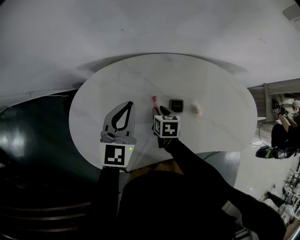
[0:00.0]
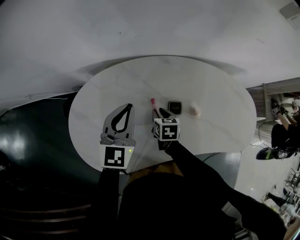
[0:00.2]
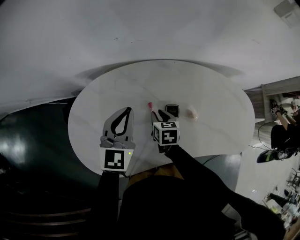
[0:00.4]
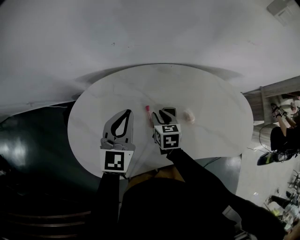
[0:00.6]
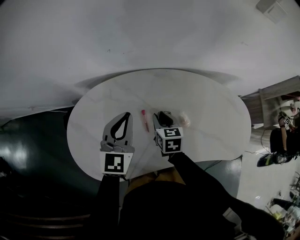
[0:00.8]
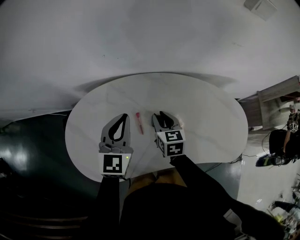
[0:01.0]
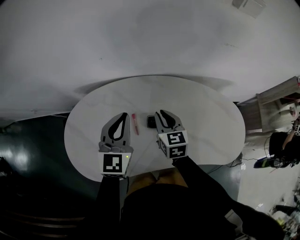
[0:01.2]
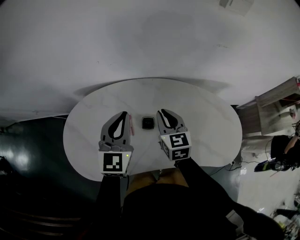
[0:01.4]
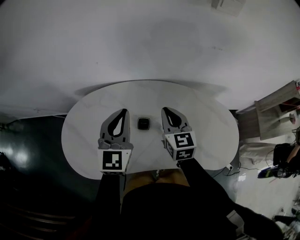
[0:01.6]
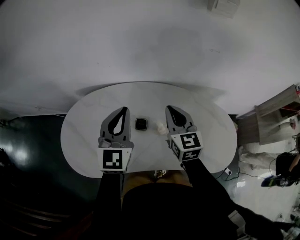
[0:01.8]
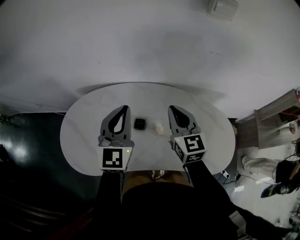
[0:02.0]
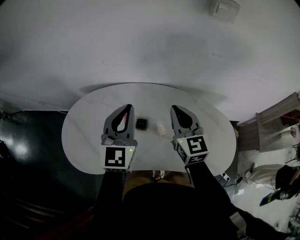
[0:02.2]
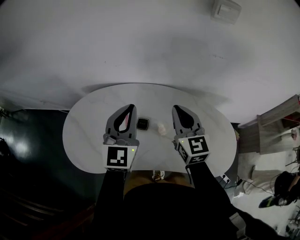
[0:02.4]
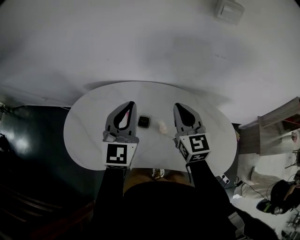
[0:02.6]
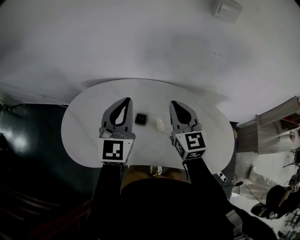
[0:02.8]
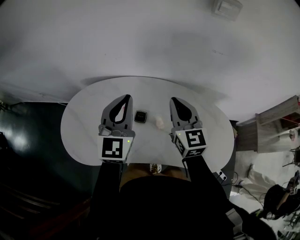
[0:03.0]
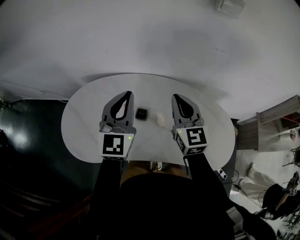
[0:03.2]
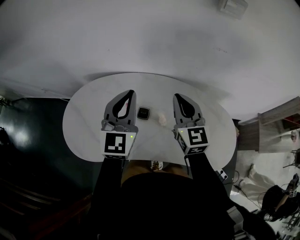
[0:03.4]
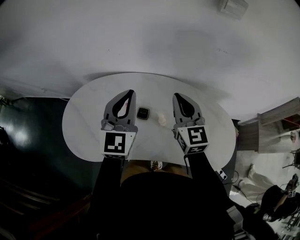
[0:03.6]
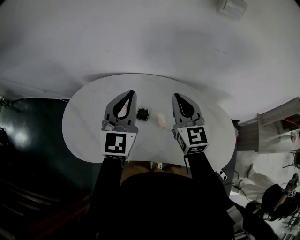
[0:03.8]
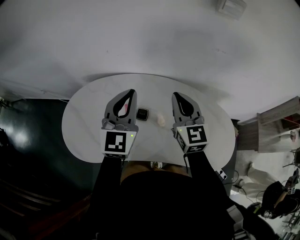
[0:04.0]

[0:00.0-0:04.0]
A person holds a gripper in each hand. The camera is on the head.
0:00.0 to 0:01.4: The left gripper moves to the right and upward, some 15 cm. The right gripper is displaced upward and to the right by roughly 25 cm, and tips its fingers upward by approximately 30 degrees.
0:01.4 to 0:02.6: The right gripper is displaced upward and to the right by roughly 15 cm, while the left gripper travels upward and to the right by approximately 10 cm.
0:02.6 to 0:04.0: The two grippers keep their place.

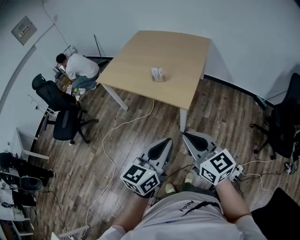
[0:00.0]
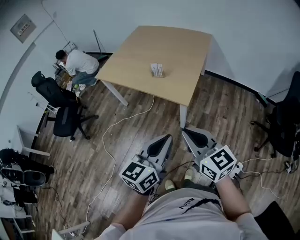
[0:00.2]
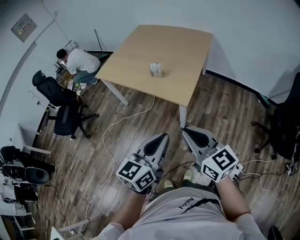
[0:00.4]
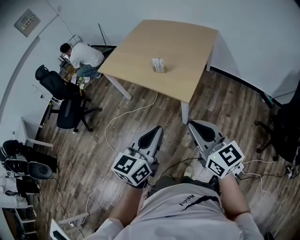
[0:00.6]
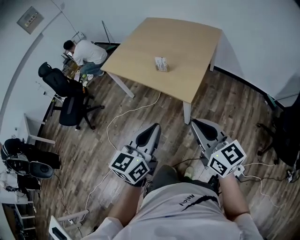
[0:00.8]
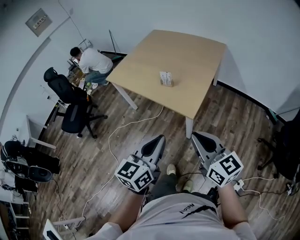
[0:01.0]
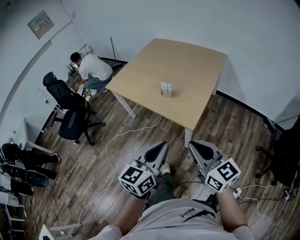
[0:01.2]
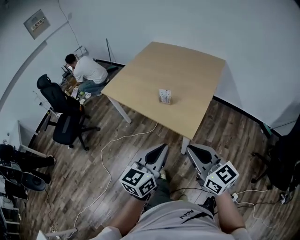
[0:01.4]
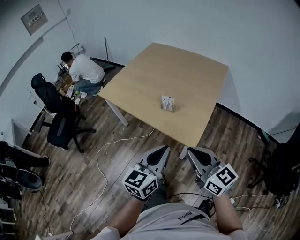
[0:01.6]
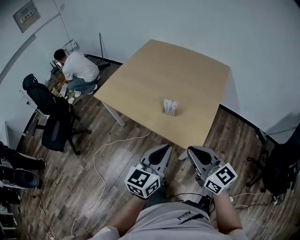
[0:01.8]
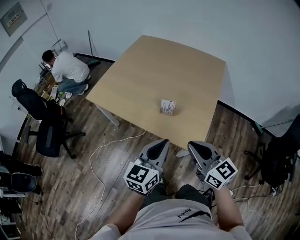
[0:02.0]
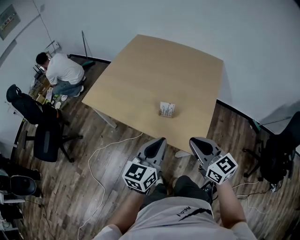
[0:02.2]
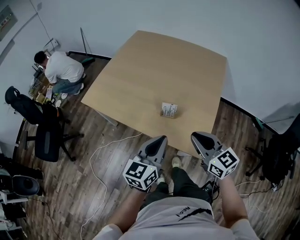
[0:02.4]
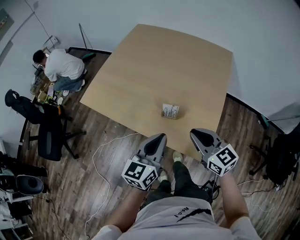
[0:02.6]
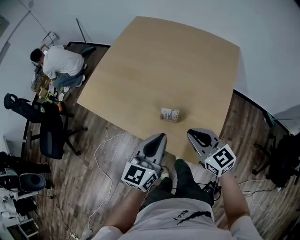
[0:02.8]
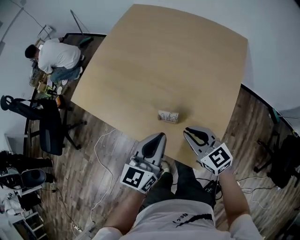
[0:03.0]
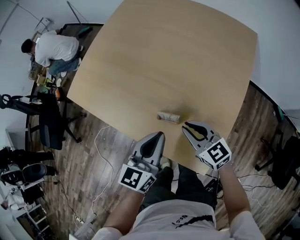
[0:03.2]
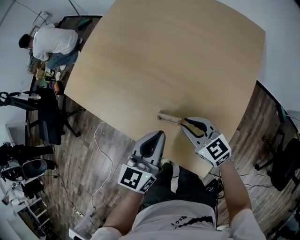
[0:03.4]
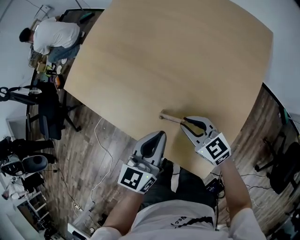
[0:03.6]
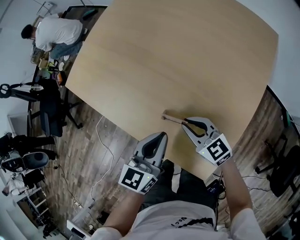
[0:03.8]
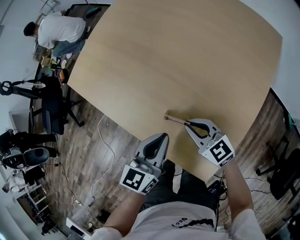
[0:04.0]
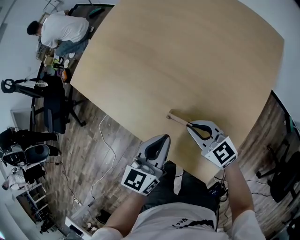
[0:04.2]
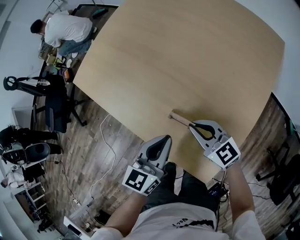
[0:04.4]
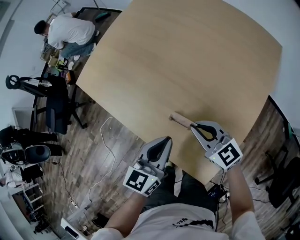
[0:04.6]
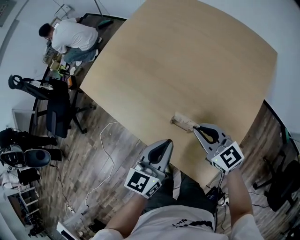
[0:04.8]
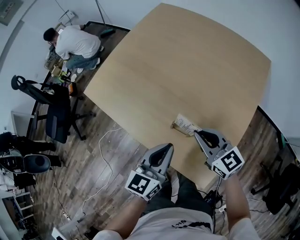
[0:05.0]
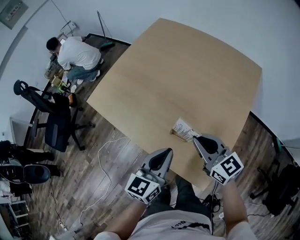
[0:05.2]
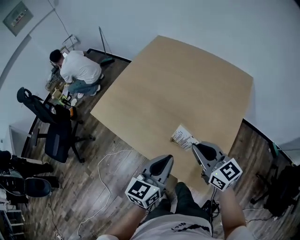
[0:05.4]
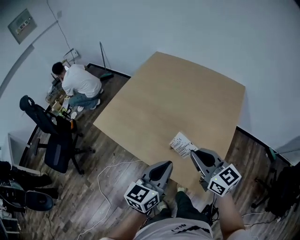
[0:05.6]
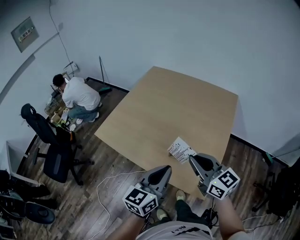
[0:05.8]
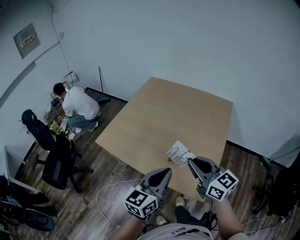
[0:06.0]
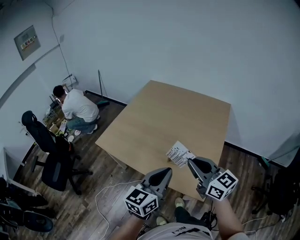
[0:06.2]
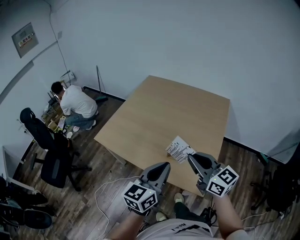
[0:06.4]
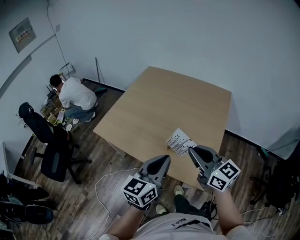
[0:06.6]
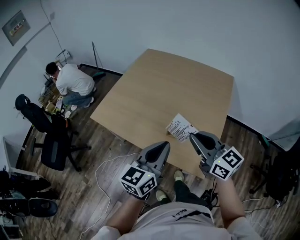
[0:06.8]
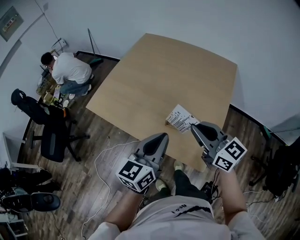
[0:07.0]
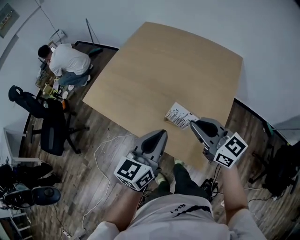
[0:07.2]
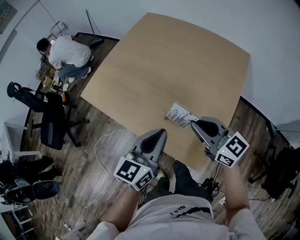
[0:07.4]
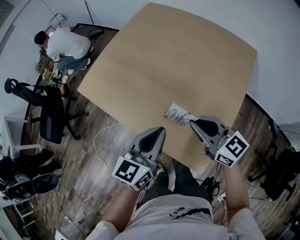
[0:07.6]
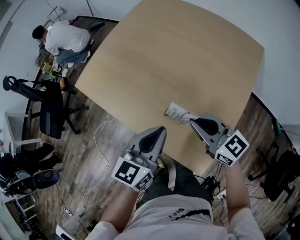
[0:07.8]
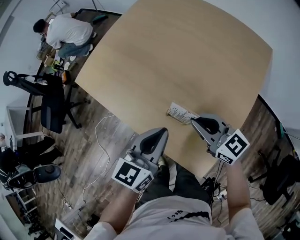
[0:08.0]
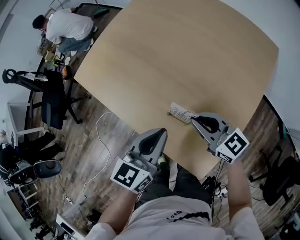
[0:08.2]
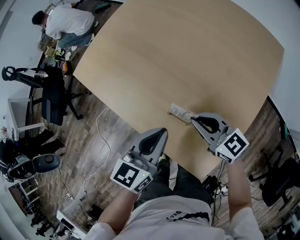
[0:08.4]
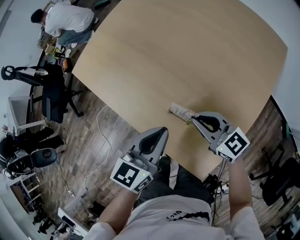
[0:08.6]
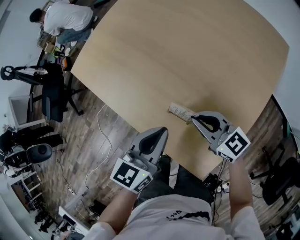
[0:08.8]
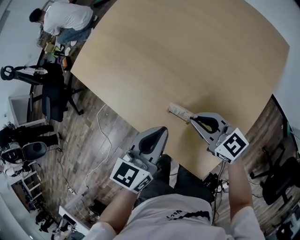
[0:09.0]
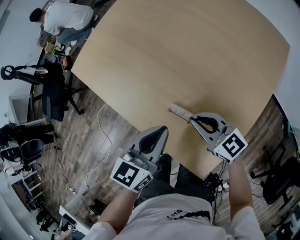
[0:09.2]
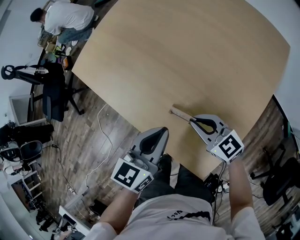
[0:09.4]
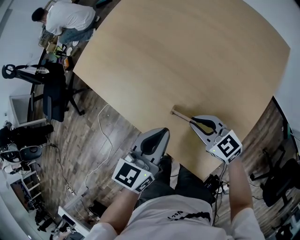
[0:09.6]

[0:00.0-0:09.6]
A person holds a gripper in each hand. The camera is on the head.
0:00.0 to 0:01.6: The two grippers go some 20 cm forward.
0:01.6 to 0:03.2: The grippers both shift forward and downward by approximately 40 cm. The right gripper changes its angle by roughly 20 degrees.
0:03.2 to 0:04.8: The right gripper moves some 5 cm downward and comes back.
0:04.8 to 0:06.4: The two grippers go roughly 25 cm upward and backward. The left gripper changes its angle by roughly 20 degrees. Meanwhile the right gripper swivels roughly 20 degrees.
0:06.4 to 0:08.0: The two grippers go some 25 cm downward and forward. The right gripper turns by about 30 degrees.
0:08.0 to 0:09.6: The right gripper shifts approximately 10 cm downward.

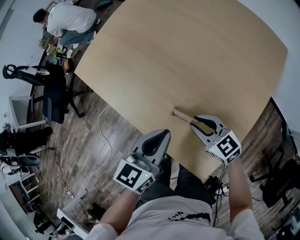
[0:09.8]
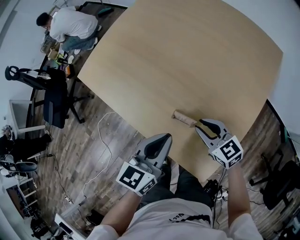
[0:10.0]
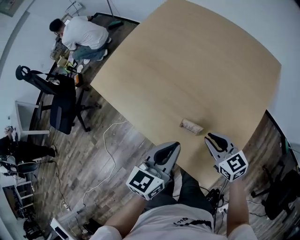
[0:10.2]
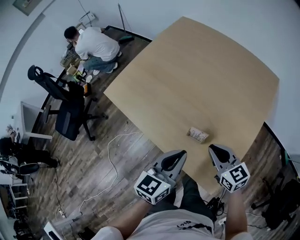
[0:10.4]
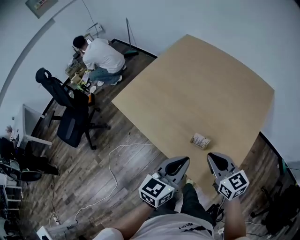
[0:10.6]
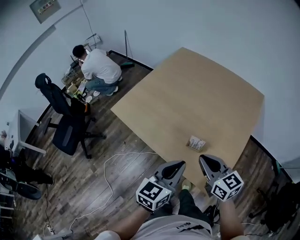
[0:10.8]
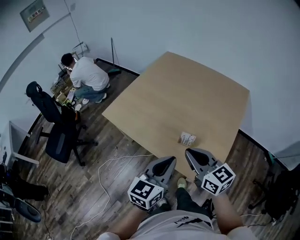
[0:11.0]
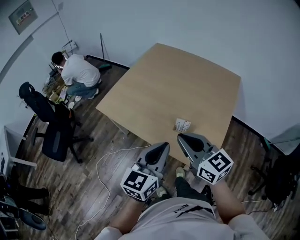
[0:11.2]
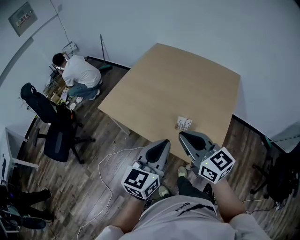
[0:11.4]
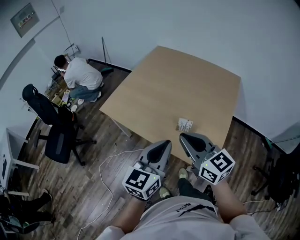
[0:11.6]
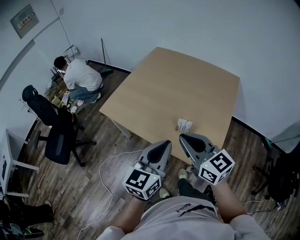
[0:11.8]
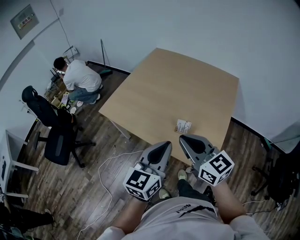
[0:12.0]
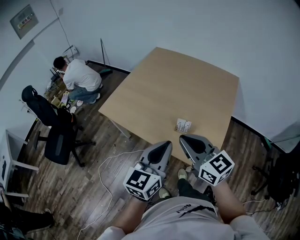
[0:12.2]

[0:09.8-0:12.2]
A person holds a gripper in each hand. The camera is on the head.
0:09.8 to 0:11.0: The right gripper moves upward, about 30 cm, and changes its angle by some 30 degrees. The left gripper goes approximately 25 cm upward, backward and to the left.
0:11.0 to 0:12.2: The two grippers go about 5 cm upward.

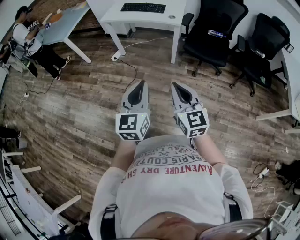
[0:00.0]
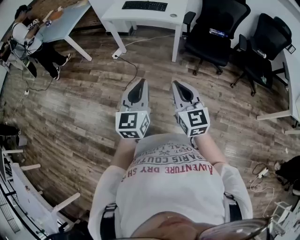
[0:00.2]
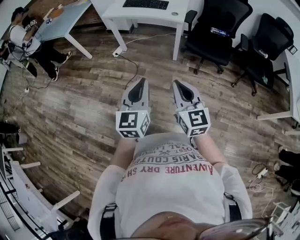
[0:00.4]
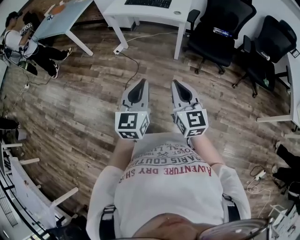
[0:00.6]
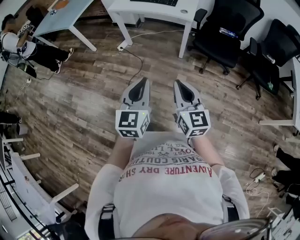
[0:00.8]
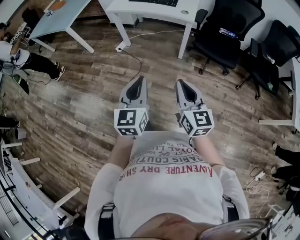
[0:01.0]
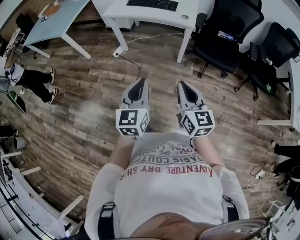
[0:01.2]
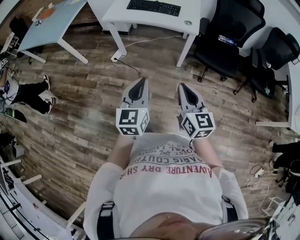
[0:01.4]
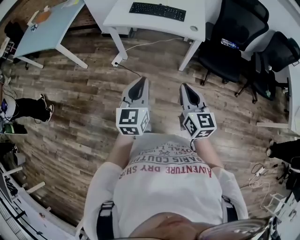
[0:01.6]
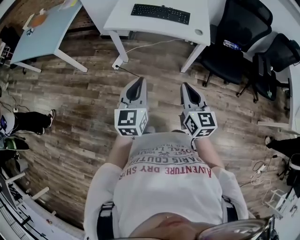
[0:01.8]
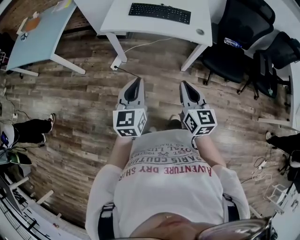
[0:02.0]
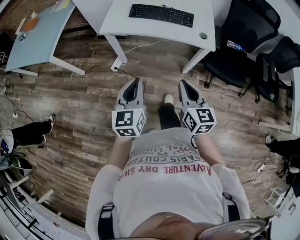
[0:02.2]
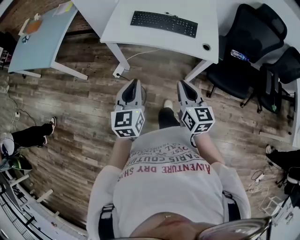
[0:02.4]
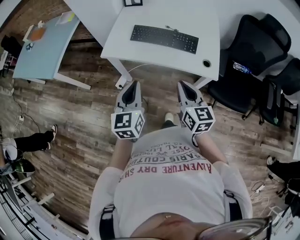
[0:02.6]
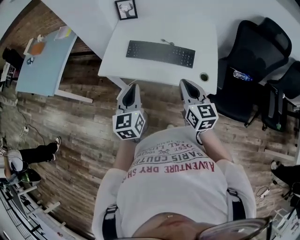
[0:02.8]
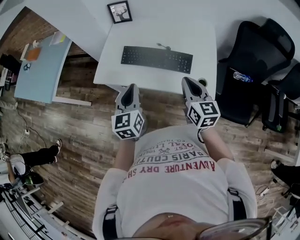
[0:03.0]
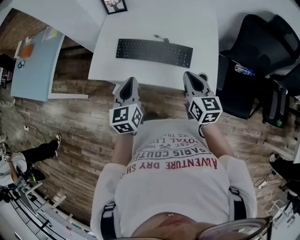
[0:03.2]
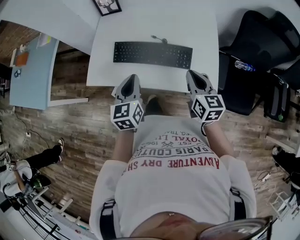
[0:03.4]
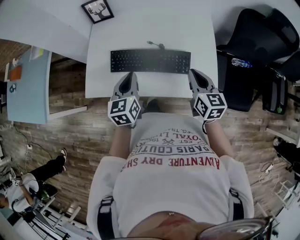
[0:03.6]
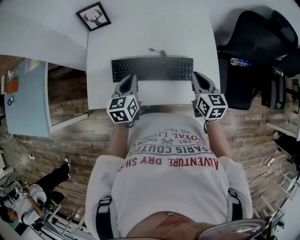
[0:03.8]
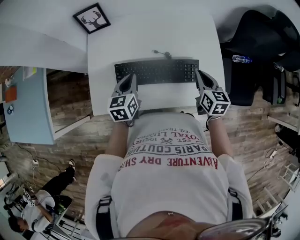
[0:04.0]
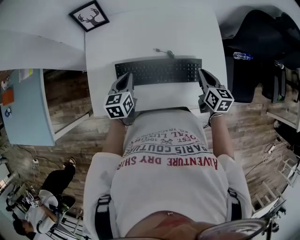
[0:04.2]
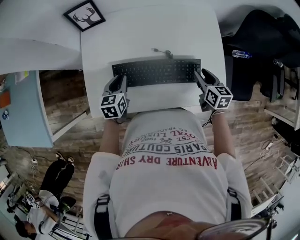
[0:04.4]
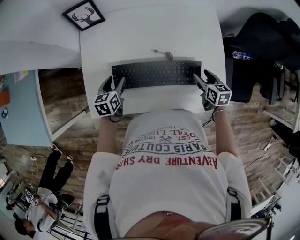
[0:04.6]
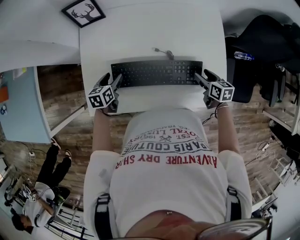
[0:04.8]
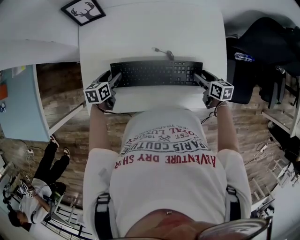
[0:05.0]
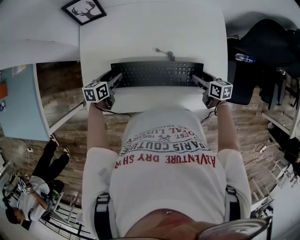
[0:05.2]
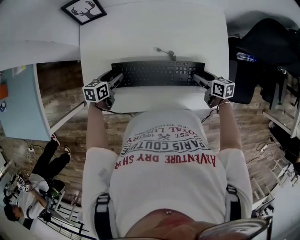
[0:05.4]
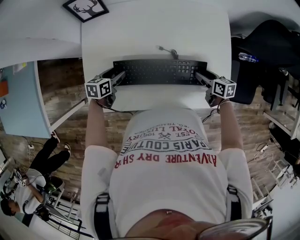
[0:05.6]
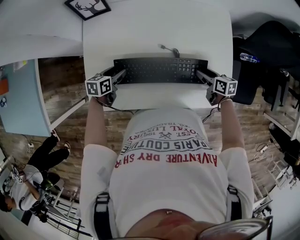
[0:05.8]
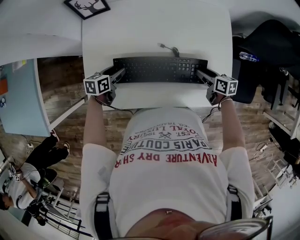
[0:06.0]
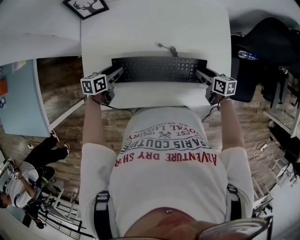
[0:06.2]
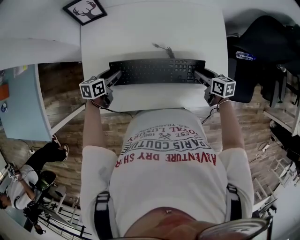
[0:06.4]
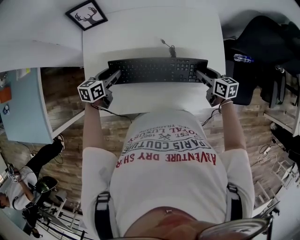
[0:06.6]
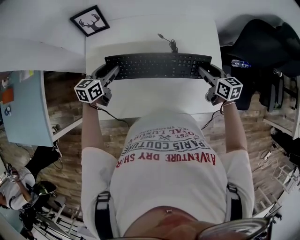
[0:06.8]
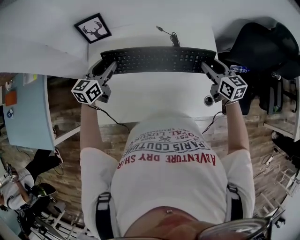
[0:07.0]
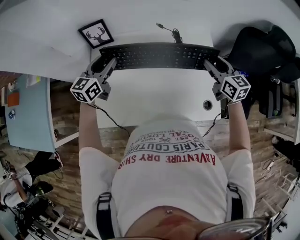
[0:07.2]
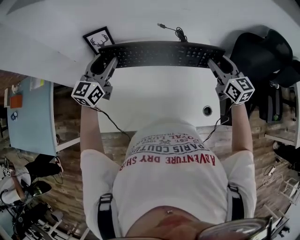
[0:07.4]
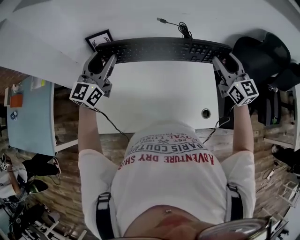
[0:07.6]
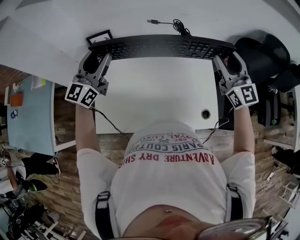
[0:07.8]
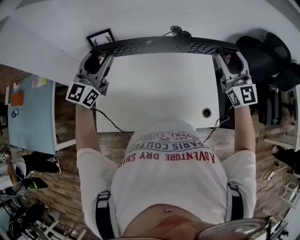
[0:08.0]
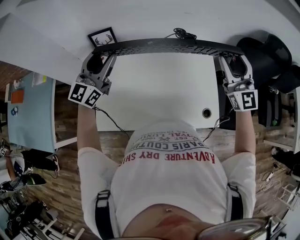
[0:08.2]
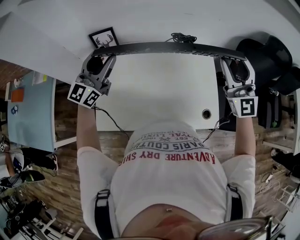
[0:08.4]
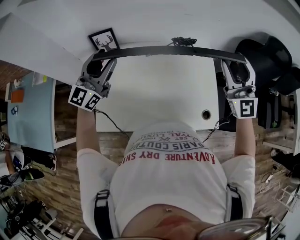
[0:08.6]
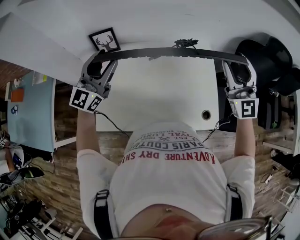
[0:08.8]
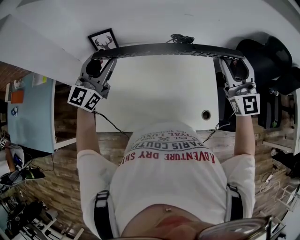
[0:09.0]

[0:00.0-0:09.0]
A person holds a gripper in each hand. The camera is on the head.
0:00.0 to 0:01.6: Both grippers travel together forward and to the left, roughly 35 cm.
0:01.6 to 0:03.0: The two grippers travel together, forward, some 50 cm.
0:03.0 to 0:04.4: Both grippers travel together forward and downward, some 30 cm. The left gripper rotates some 30 degrees. Meanwhile the right gripper turns by some 30 degrees, and opens its fingers.
0:04.4 to 0:06.0: The two grippers go roughly 10 cm downward. The left gripper turns by approximately 30 degrees, and opens, while the right gripper rotates roughly 20 degrees.
0:06.0 to 0:07.6: The two grippers go some 40 cm upward. The left gripper tilts its fingers about 50 degrees upward. Meanwhile the right gripper tilts its fingers some 40 degrees upward.
0:07.6 to 0:09.0: The right gripper is displaced upward by about 5 cm, and swivels approximately 20 degrees.
